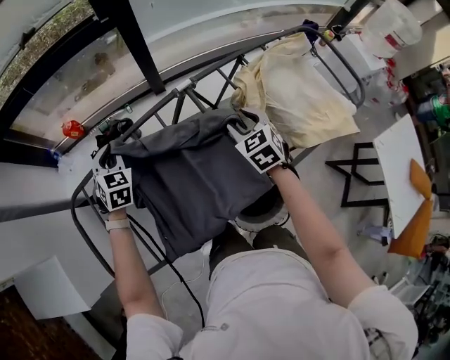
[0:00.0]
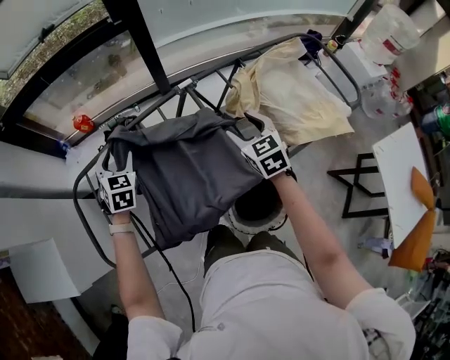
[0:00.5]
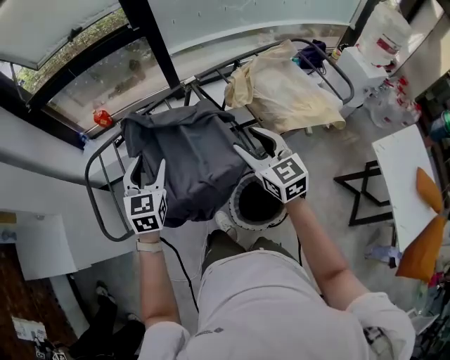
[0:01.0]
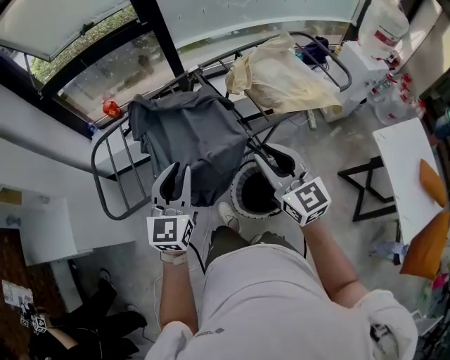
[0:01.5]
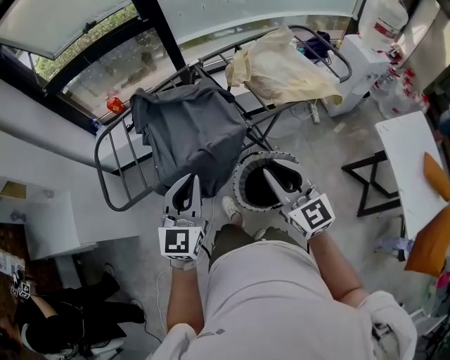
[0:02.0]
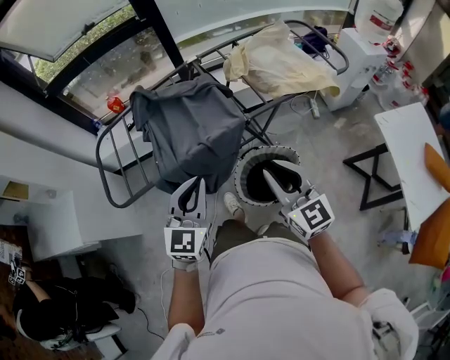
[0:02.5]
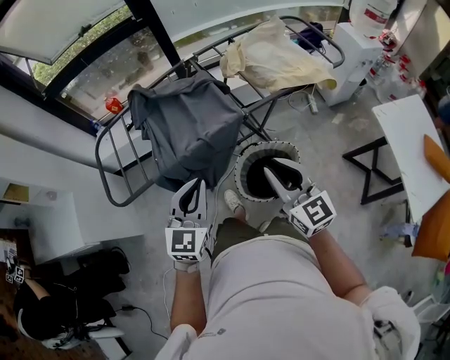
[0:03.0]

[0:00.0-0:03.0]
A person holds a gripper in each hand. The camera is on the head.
0:00.0 to 0:01.5: The left gripper goes about 40 cm backward, changes its angle by about 40 degrees, and opens and closes again; the right gripper travels backward and upward by approximately 40 cm, and tips its fingers upward by some 40 degrees.
0:01.5 to 0:03.0: Both grippers travel together backward, roughly 10 cm.

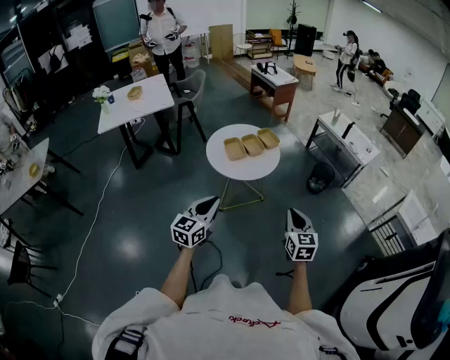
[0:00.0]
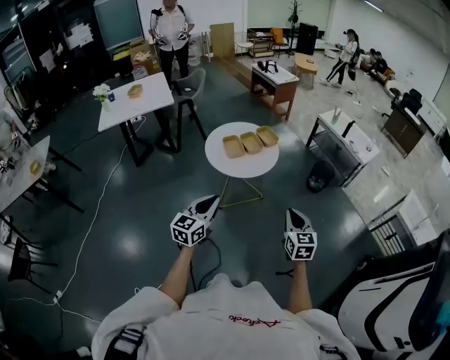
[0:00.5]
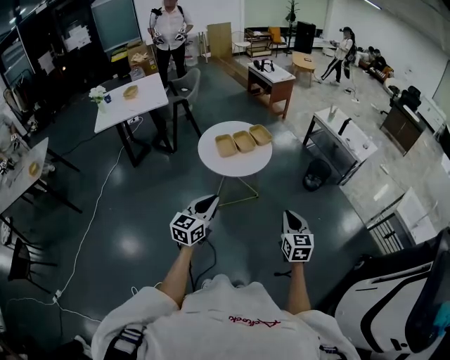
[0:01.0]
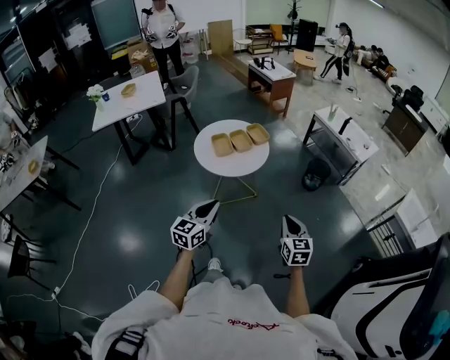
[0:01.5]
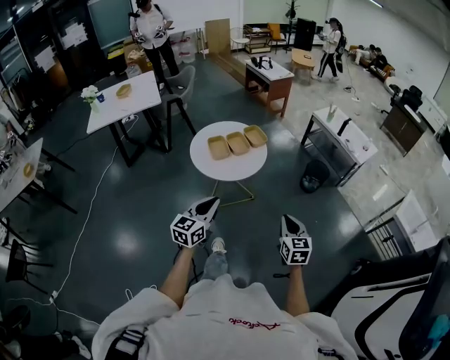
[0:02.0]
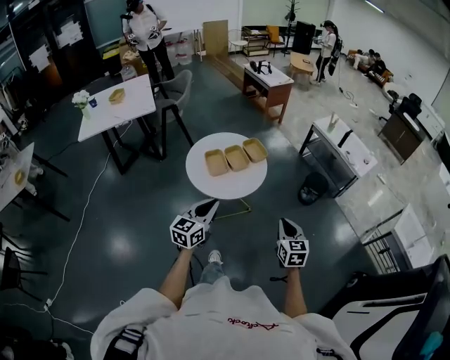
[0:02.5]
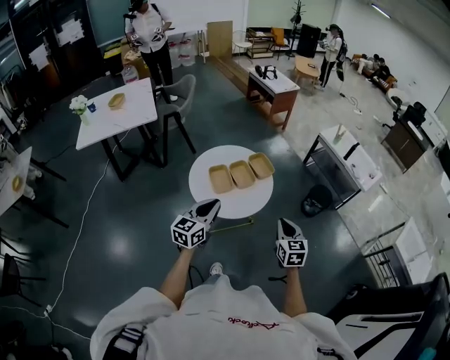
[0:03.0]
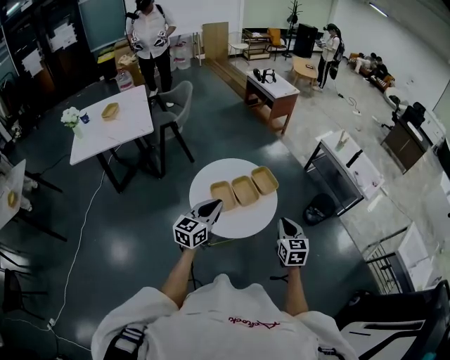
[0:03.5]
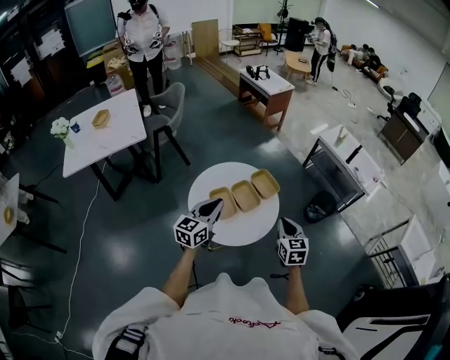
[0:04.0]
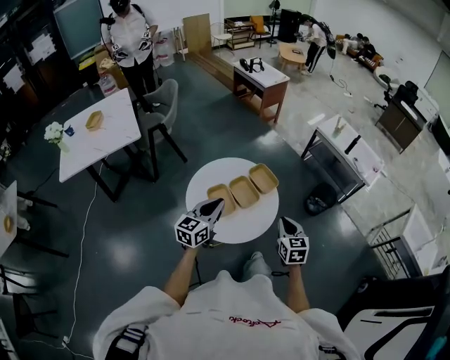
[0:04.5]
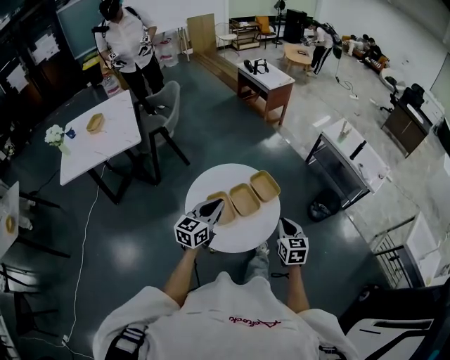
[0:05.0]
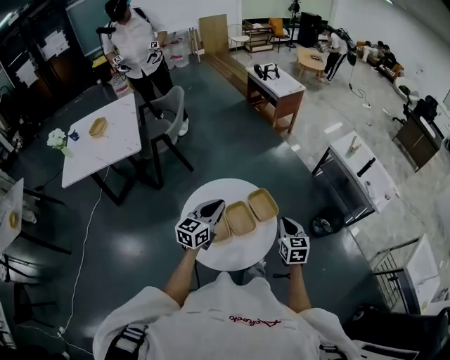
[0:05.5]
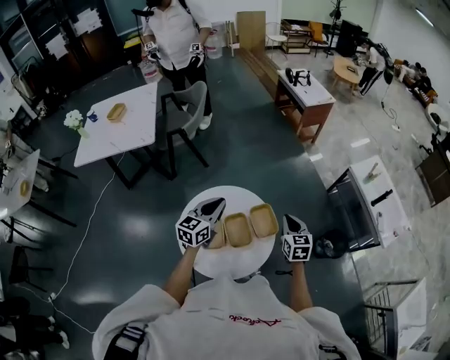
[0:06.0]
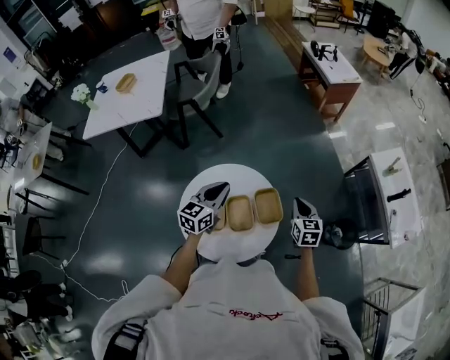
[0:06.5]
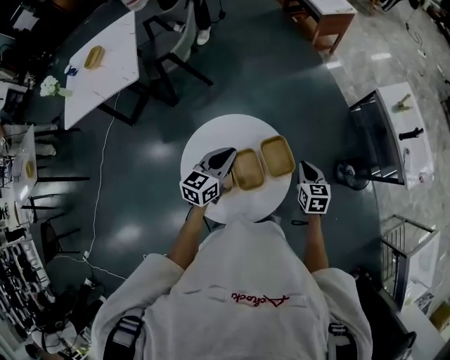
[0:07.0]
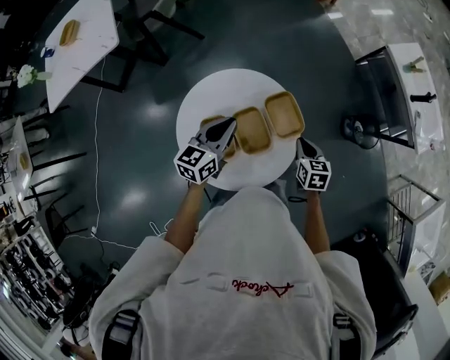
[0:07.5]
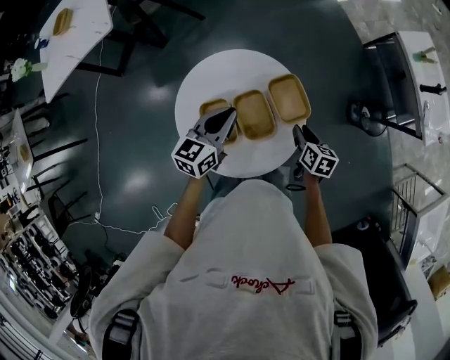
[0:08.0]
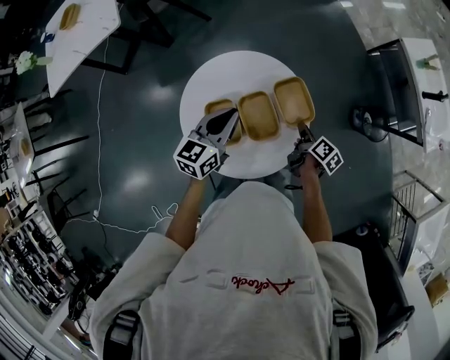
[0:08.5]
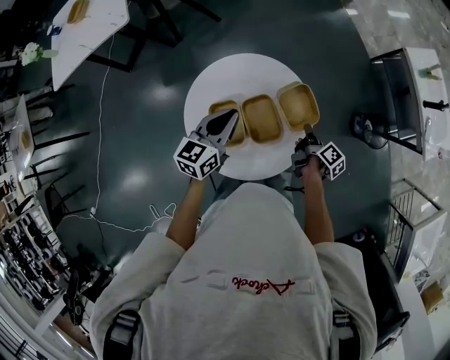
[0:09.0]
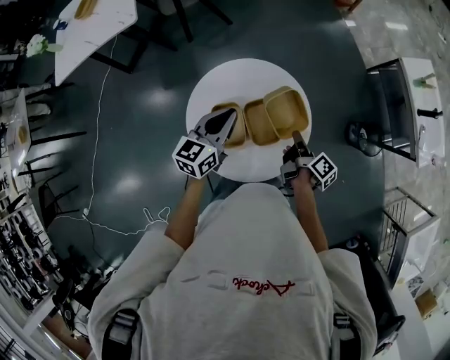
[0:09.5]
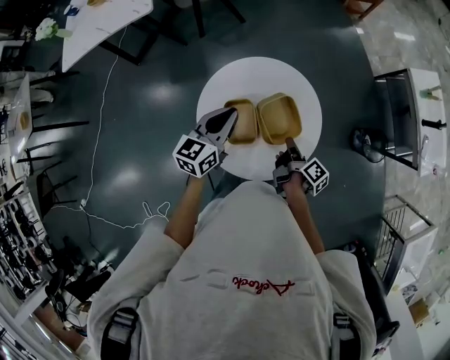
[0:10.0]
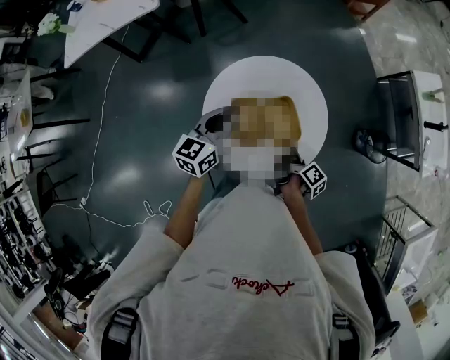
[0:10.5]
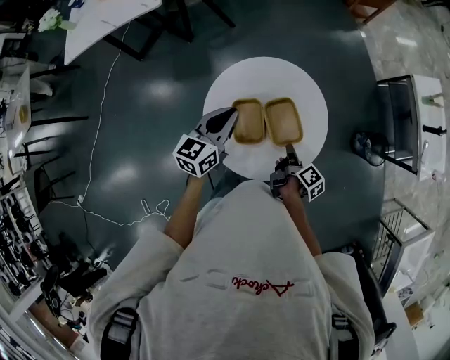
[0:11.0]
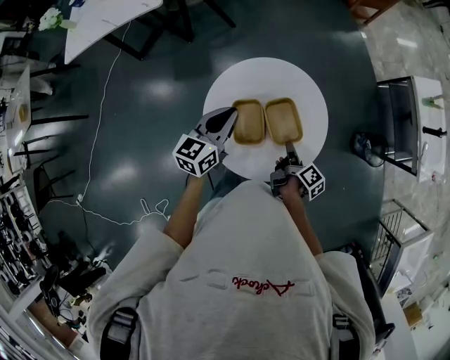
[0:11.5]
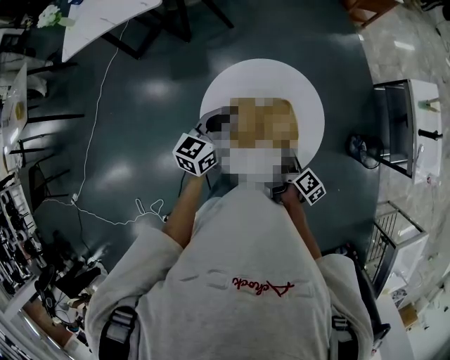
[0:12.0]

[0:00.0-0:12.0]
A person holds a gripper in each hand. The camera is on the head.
0:00.0 to 0:02.0: The right gripper is displaced to the right and downward by approximately 10 cm, while the left gripper shifts approximately 10 cm to the right and forward.
0:02.0 to 0:04.0: The grippers both shift forward and to the left by about 35 cm.
0:04.0 to 0:06.0: Both grippers move forward, approximately 25 cm.
0:06.0 to 0:08.0: The right gripper moves downward, some 25 cm, turns by about 40 degrees, and opens its fingers. Meanwhile the left gripper goes some 15 cm downward.
0:08.0 to 0:10.0: Both grippers move to the left, some 10 cm. The right gripper rolls clockwise, seen from behind, by approximately 50 degrees, and closes.
0:10.0 to 0:12.0: The right gripper opens.

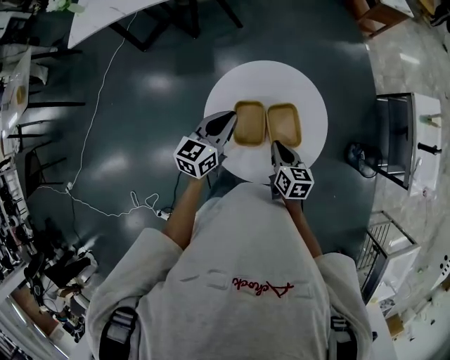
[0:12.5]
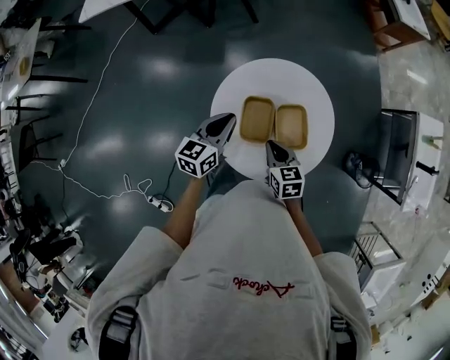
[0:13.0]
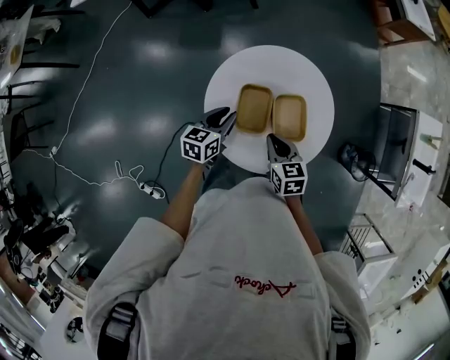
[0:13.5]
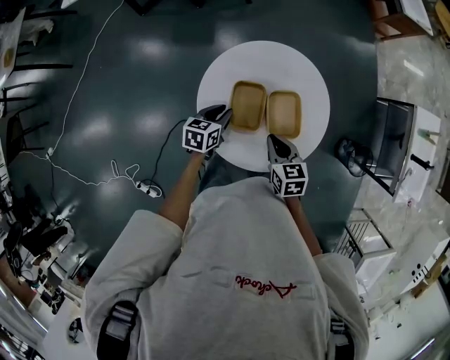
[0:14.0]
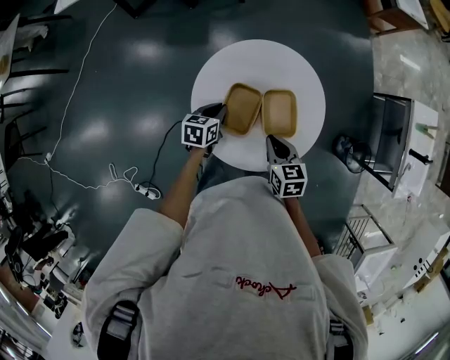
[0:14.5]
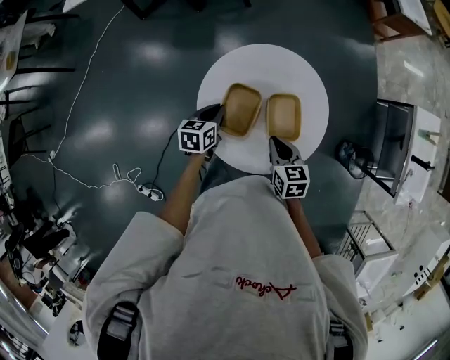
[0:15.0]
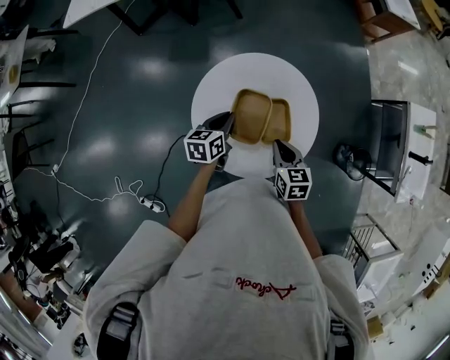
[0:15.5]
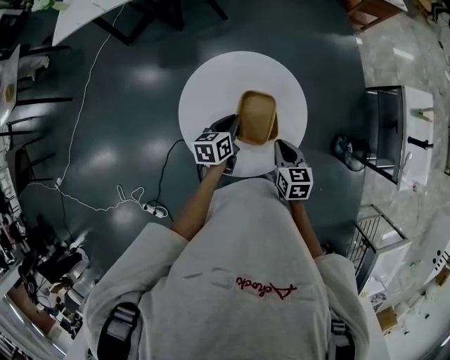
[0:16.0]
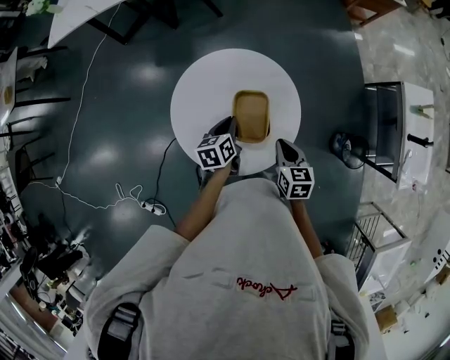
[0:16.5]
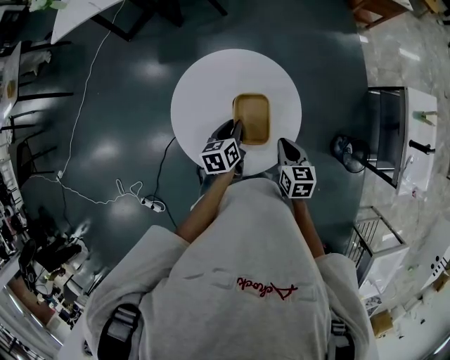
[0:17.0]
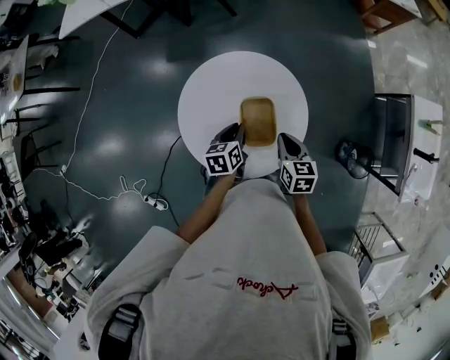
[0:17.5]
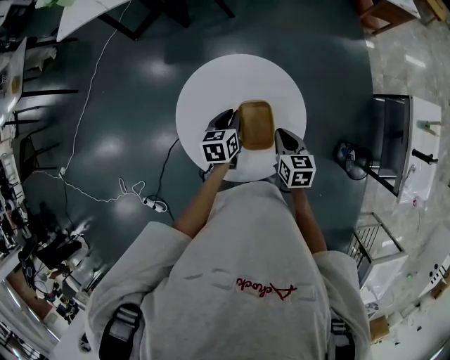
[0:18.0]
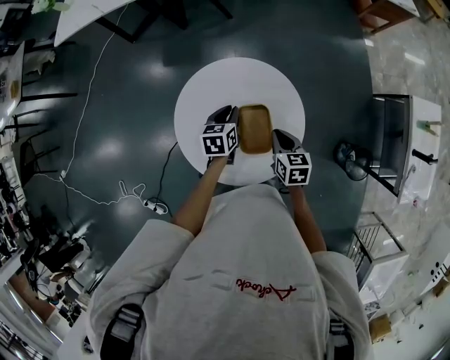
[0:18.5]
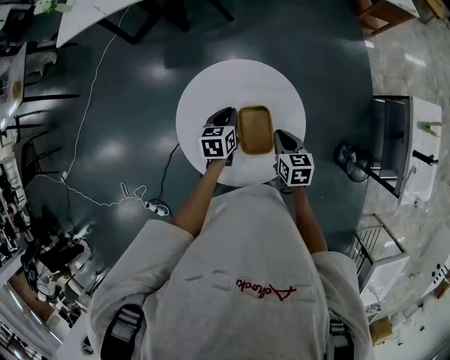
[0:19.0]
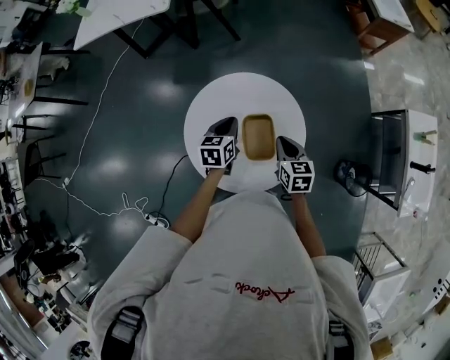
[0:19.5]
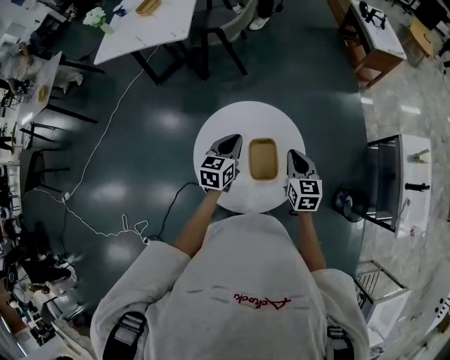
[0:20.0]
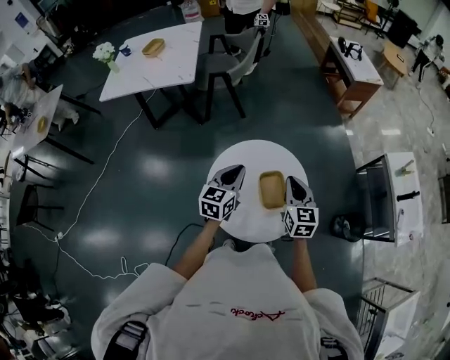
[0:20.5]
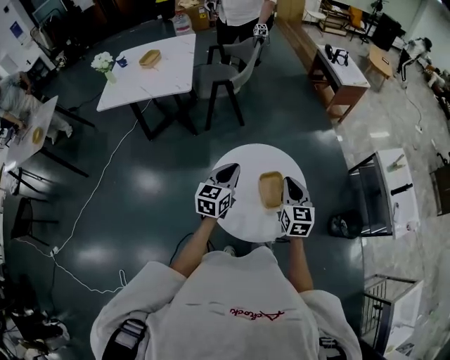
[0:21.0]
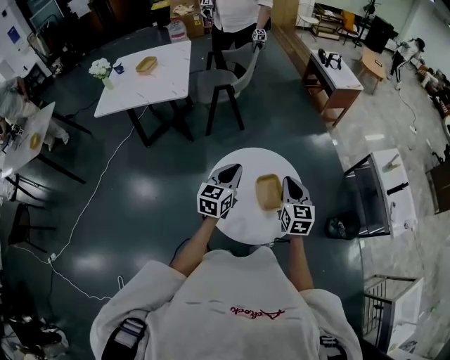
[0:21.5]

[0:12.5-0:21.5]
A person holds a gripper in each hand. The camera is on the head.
0:12.5 to 0:14.5: The left gripper heads downward, covering about 20 cm, and rotates some 30 degrees.
0:14.5 to 0:17.0: Both grippers move to the right, roughly 15 cm.
0:17.0 to 0:19.5: Both grippers move forward, approximately 5 cm.
0:19.5 to 0:21.5: The two grippers go about 20 cm upward. The right gripper changes its angle by about 30 degrees. Meanwhile the left gripper rotates roughly 40 degrees.

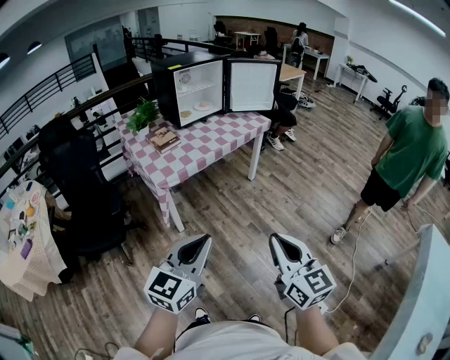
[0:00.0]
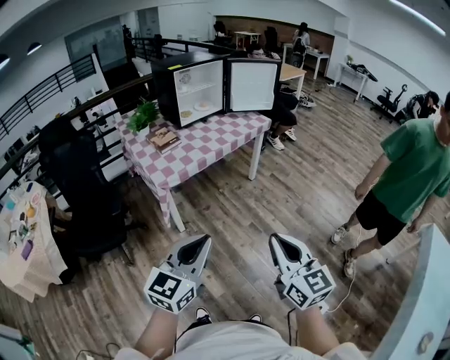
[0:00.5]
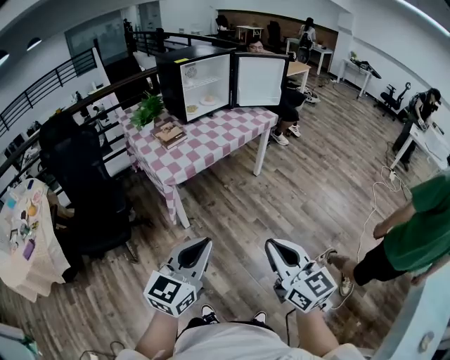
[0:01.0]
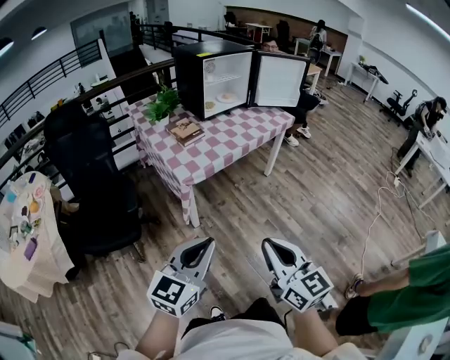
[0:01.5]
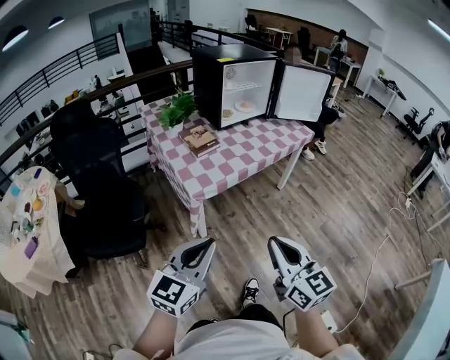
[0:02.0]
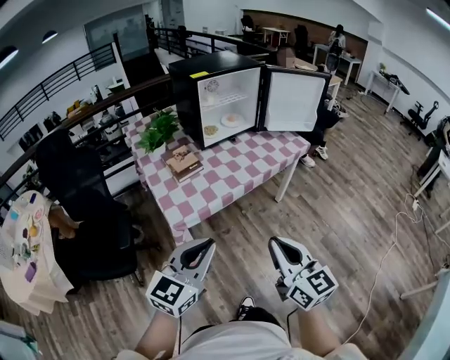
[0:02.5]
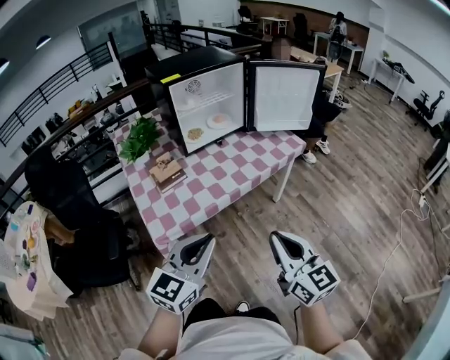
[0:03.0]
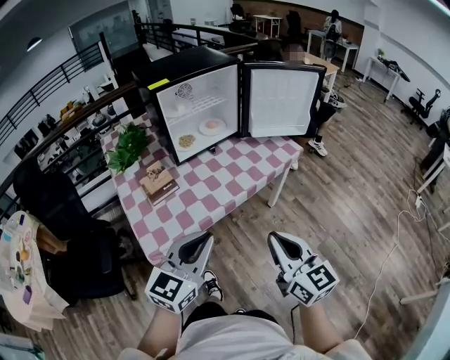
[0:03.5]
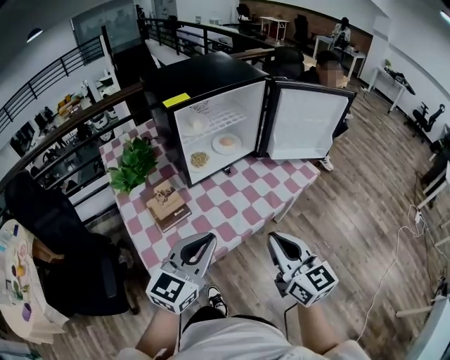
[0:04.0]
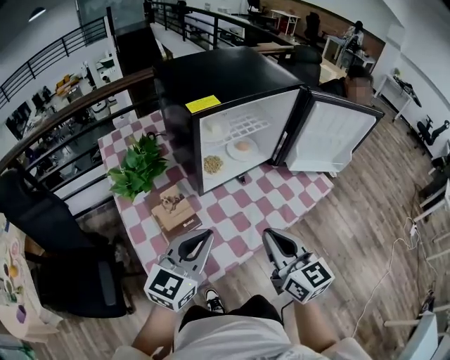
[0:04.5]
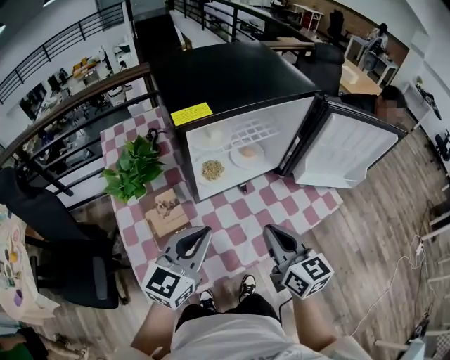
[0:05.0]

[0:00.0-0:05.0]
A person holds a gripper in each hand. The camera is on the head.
0:00.0 to 0:02.5: The two grippers go about 30 cm forward.
0:02.5 to 0:05.0: The two grippers travel together, forward, roughly 50 cm.
